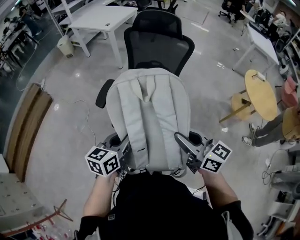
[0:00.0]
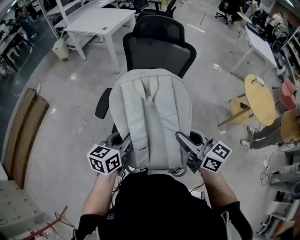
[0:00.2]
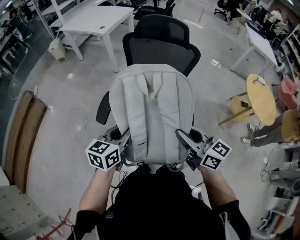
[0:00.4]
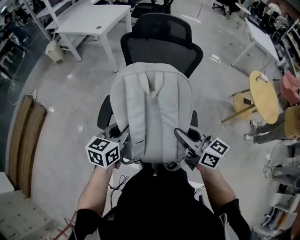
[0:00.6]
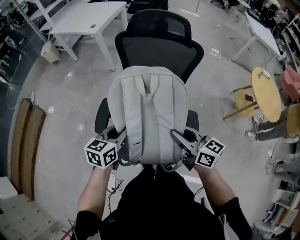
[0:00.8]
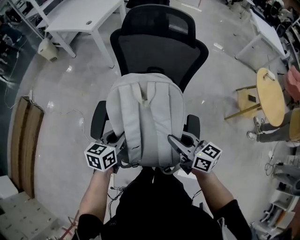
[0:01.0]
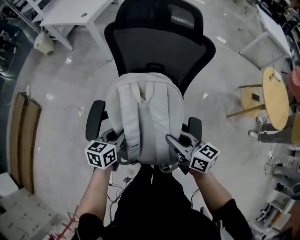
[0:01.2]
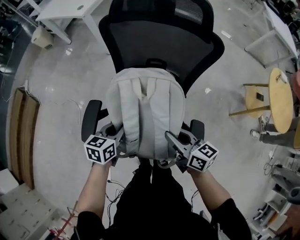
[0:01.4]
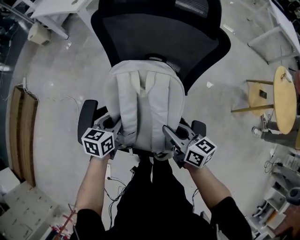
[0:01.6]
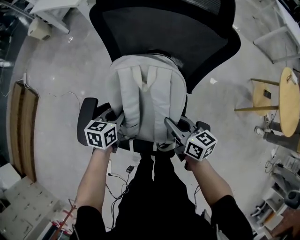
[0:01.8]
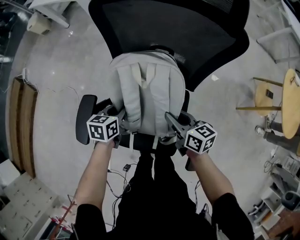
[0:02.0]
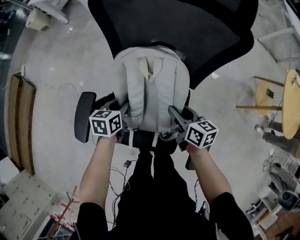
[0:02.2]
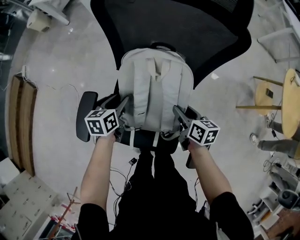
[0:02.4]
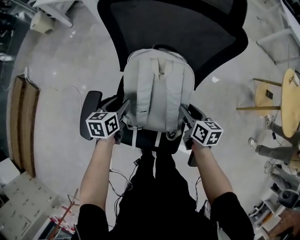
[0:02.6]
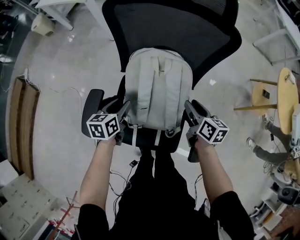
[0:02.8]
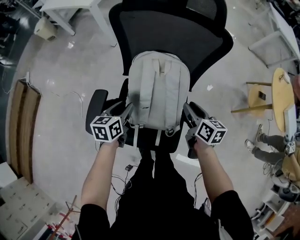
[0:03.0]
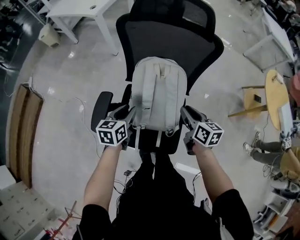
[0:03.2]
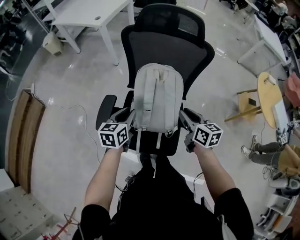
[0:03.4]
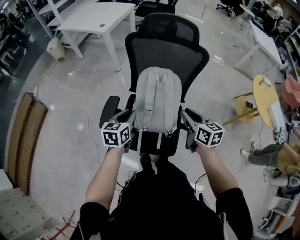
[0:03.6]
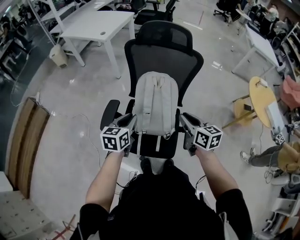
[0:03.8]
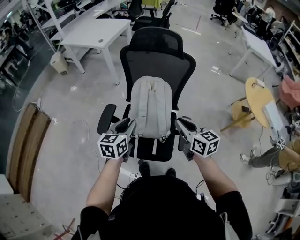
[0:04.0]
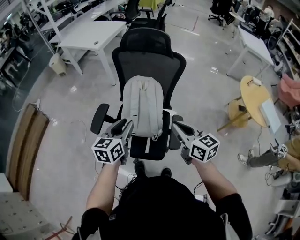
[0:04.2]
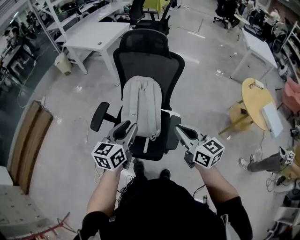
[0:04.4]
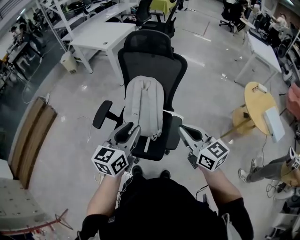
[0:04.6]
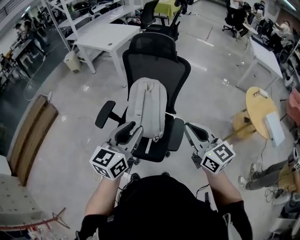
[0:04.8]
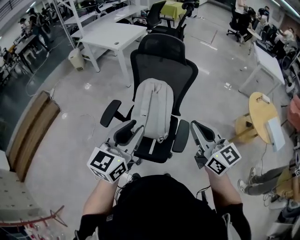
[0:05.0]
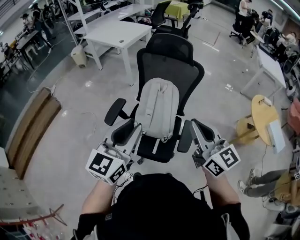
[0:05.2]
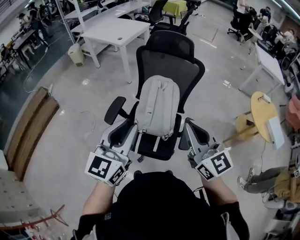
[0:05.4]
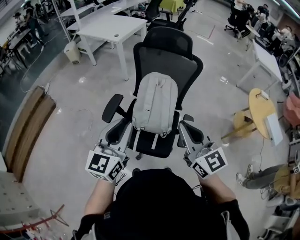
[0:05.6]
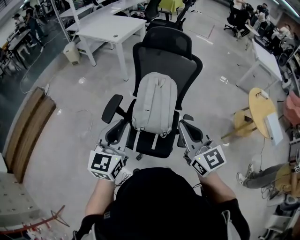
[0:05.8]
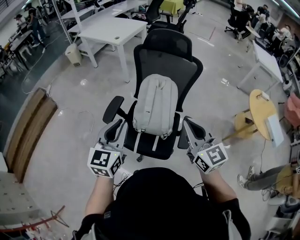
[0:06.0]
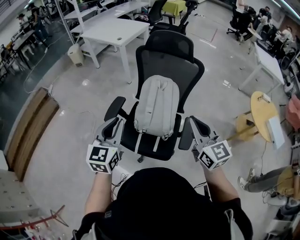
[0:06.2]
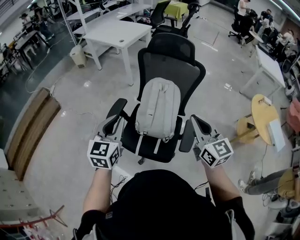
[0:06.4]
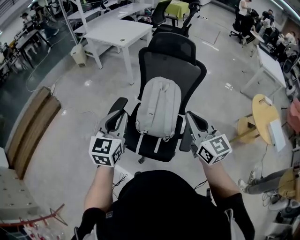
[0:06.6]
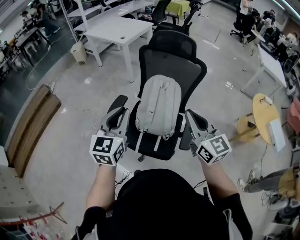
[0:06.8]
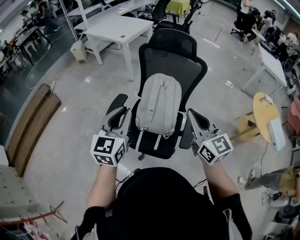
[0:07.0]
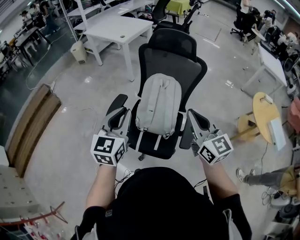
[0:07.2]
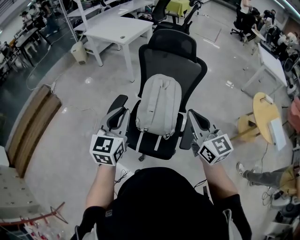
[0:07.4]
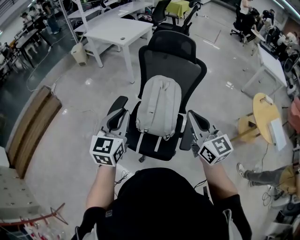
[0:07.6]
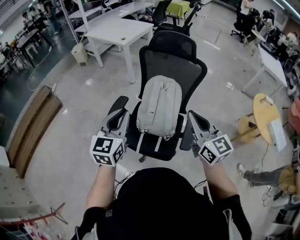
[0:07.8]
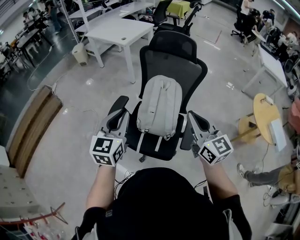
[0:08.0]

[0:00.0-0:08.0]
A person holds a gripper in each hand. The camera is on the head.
0:00.0 to 0:01.6: The two grippers go roughly 40 cm forward and downward. The right gripper turns by approximately 30 degrees; the left gripper swivels roughly 20 degrees.
0:01.6 to 0:03.2: The left gripper goes downward and returns, approximately 10 cm each way; the right gripper moves some 10 cm downward and comes back.
0:03.2 to 0:04.8: The left gripper shifts about 40 cm upward, backward and to the right, and swivels approximately 30 degrees, while the right gripper shifts approximately 35 cm upward and backward, turns by some 40 degrees, and closes.
0:04.8 to 0:06.4: The right gripper travels to the left by approximately 5 cm, while the left gripper travels to the left by some 15 cm, and rotates approximately 20 degrees.
0:06.4 to 0:08.0: The grippers make only small movements.

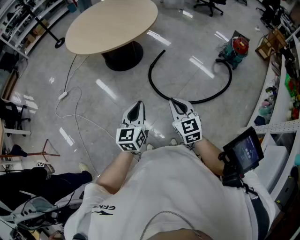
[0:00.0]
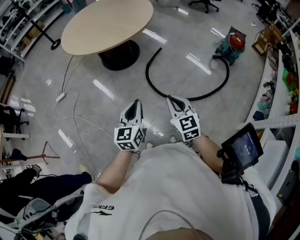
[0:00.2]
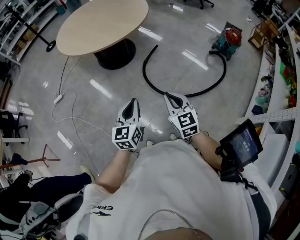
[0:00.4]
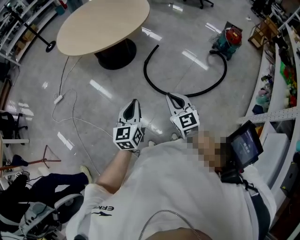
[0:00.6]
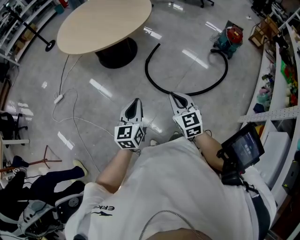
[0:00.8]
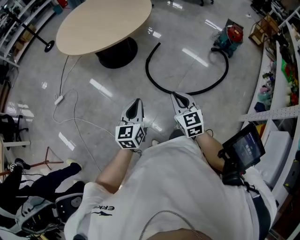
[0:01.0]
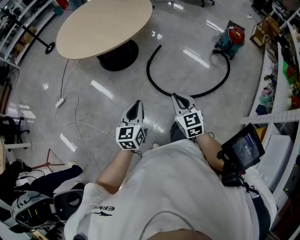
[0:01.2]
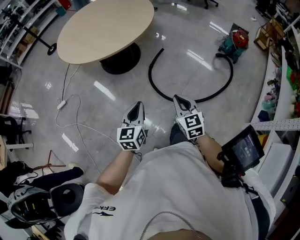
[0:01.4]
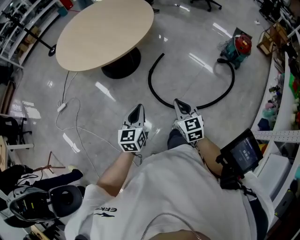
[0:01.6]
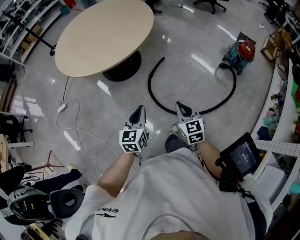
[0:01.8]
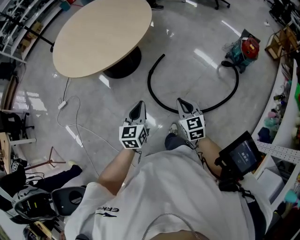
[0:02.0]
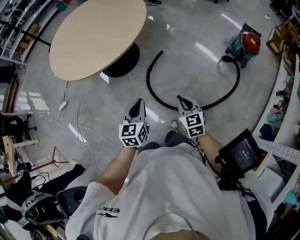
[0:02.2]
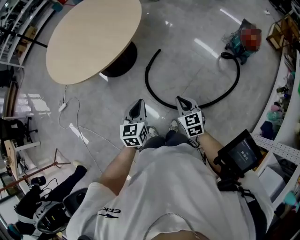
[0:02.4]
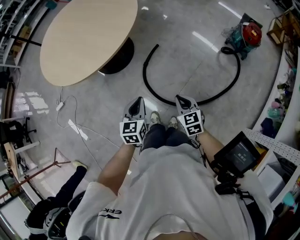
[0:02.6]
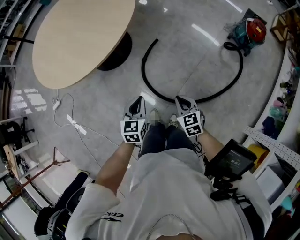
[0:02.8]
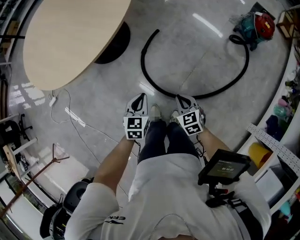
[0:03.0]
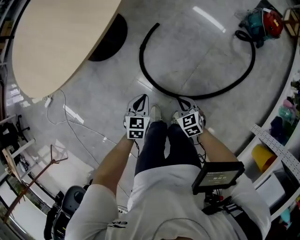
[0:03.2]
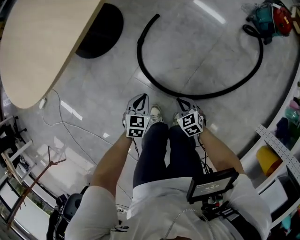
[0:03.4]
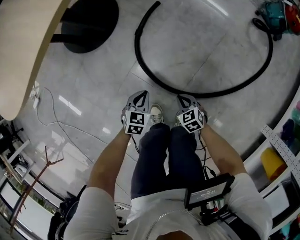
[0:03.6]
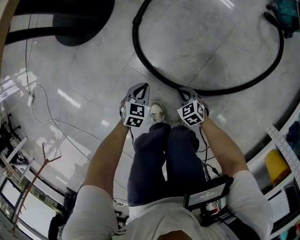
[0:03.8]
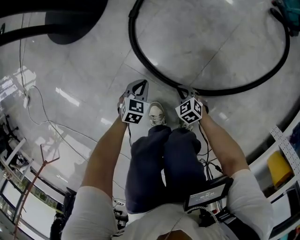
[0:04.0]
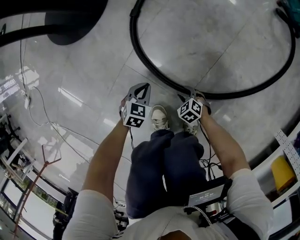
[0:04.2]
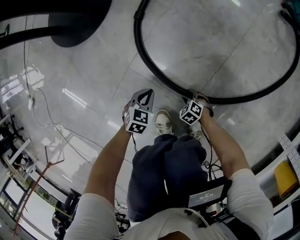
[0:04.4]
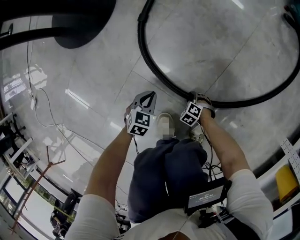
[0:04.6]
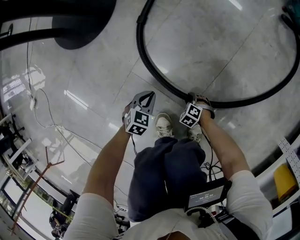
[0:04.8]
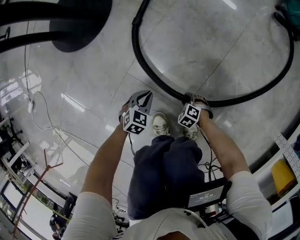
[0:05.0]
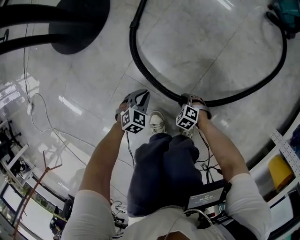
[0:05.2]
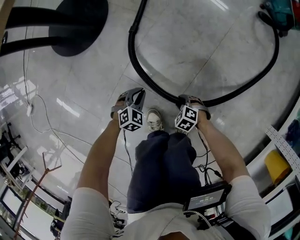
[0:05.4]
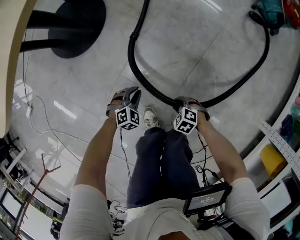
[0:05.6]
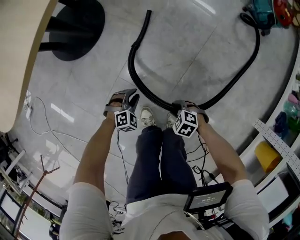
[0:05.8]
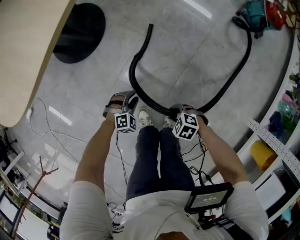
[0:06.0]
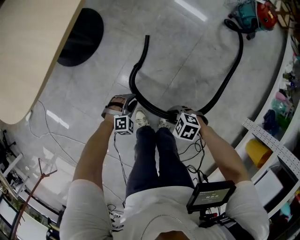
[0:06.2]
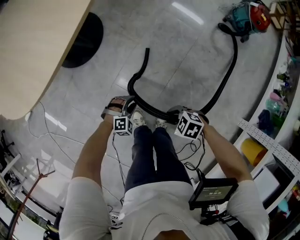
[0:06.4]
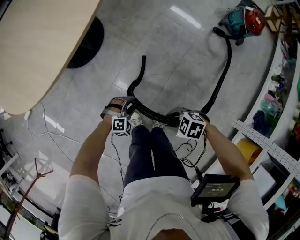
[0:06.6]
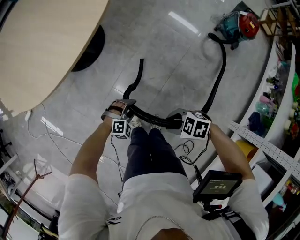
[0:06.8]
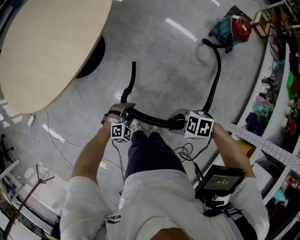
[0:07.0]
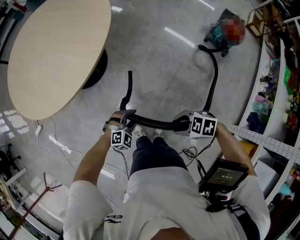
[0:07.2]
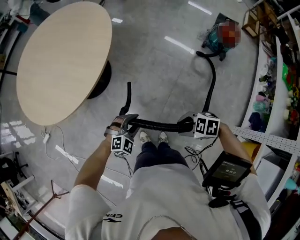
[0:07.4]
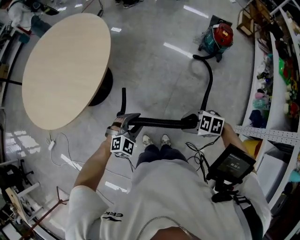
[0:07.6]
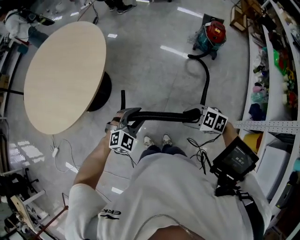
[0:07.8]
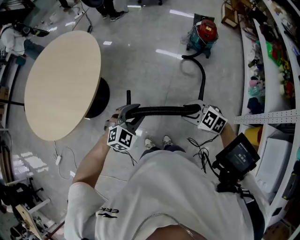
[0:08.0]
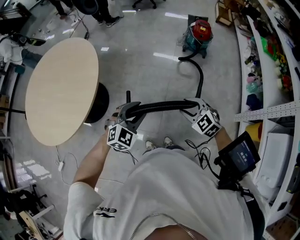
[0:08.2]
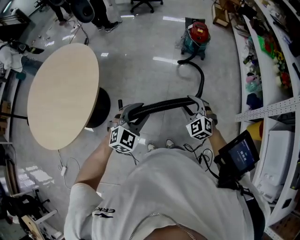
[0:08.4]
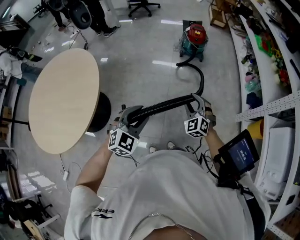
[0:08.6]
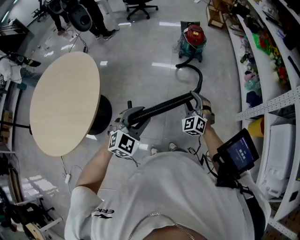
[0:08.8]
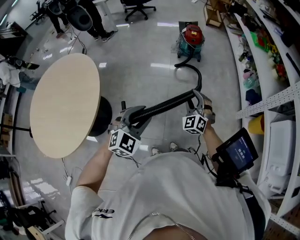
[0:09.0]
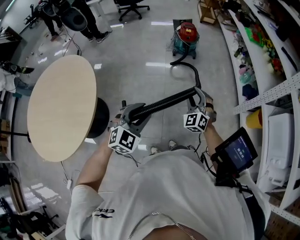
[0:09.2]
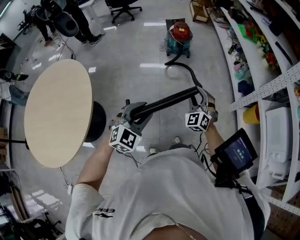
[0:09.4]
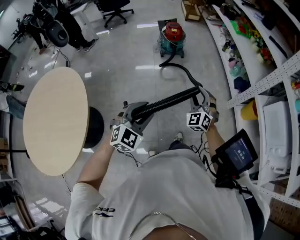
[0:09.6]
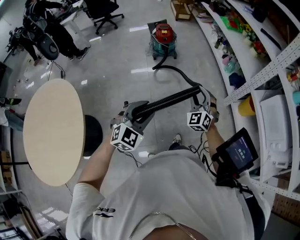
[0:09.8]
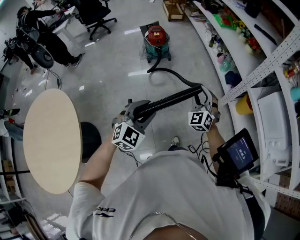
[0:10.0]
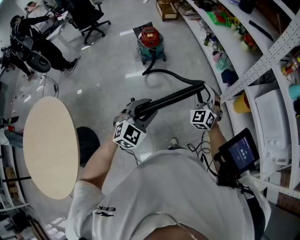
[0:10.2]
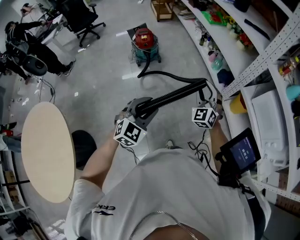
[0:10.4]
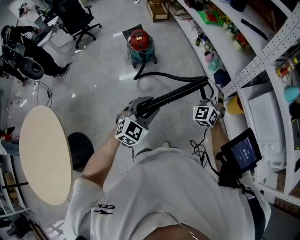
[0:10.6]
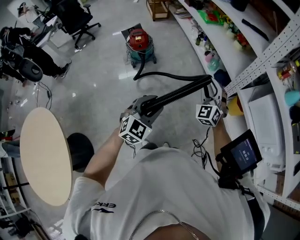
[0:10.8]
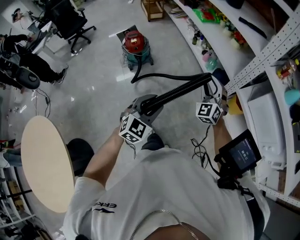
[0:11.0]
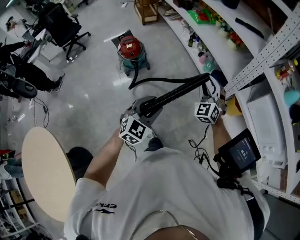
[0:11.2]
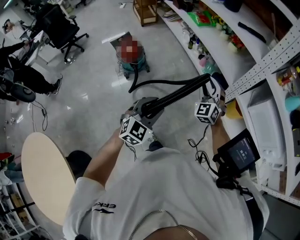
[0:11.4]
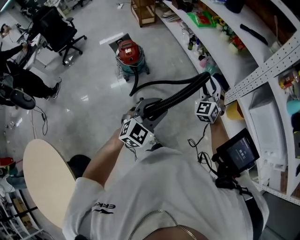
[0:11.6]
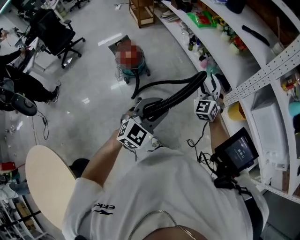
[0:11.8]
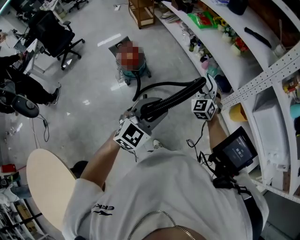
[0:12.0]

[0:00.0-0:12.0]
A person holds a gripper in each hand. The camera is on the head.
0:00.0 to 0:01.6: The left gripper travels forward by some 15 cm. Meanwhile the right gripper shifts approximately 15 cm forward and downward.
0:01.6 to 0:03.0: The right gripper goes about 35 cm downward, forward and to the right. Meanwhile the left gripper shifts about 35 cm forward, downward and to the right, and changes its angle by approximately 20 degrees.
0:03.0 to 0:04.4: The two grippers go some 60 cm downward. The right gripper angles its fingers downward, by about 30 degrees, and opens its fingers. Meanwhile the left gripper rotates about 30 degrees.
0:04.4 to 0:06.0: The right gripper moves upward, about 40 cm, while the left gripper is displaced upward by some 20 cm, rotates around the line of its fingers by approximately 50 degrees, clockwise from behind, and opens its fingers.
0:06.0 to 0:07.6: The grippers both shift upward by approximately 50 cm. The left gripper swivels roughly 20 degrees.
0:07.6 to 0:09.0: The left gripper is displaced upward by approximately 15 cm. The right gripper moves approximately 15 cm, and tips its fingers upward by roughly 40 degrees.
0:09.0 to 0:10.4: The right gripper ends up about 35 cm from where it was, and turns by some 30 degrees. The left gripper moves approximately 30 cm, and rotates about 20 degrees.
0:10.4 to 0:12.0: Both grippers travel together forward and to the left, some 25 cm.

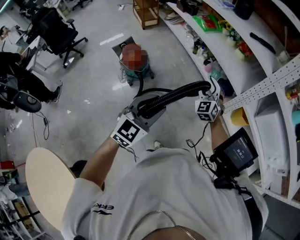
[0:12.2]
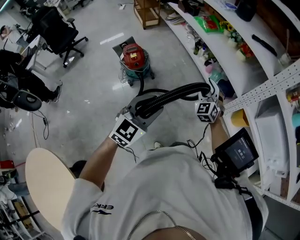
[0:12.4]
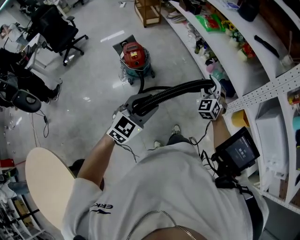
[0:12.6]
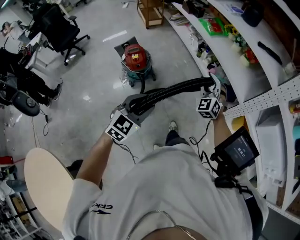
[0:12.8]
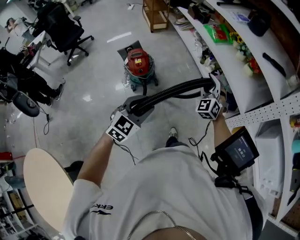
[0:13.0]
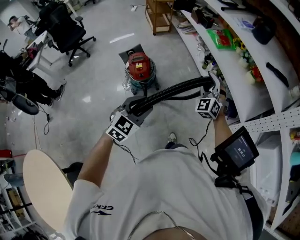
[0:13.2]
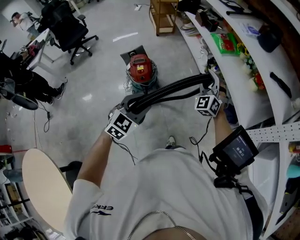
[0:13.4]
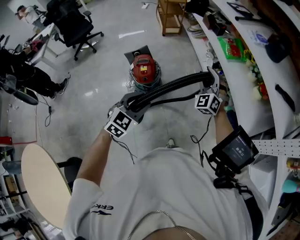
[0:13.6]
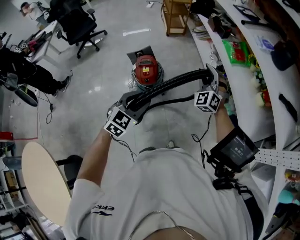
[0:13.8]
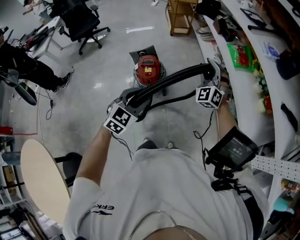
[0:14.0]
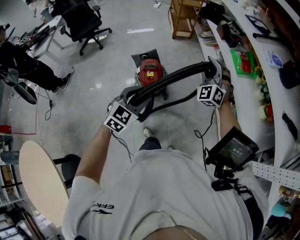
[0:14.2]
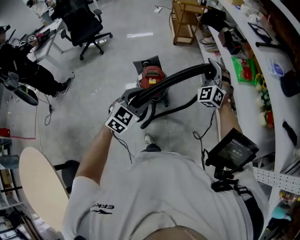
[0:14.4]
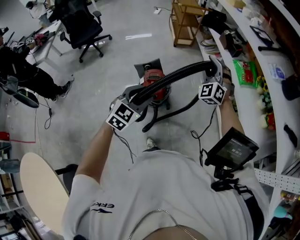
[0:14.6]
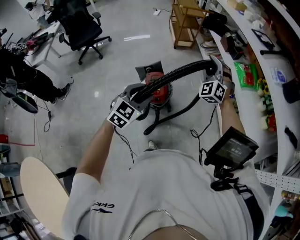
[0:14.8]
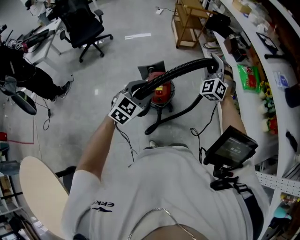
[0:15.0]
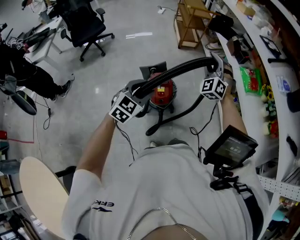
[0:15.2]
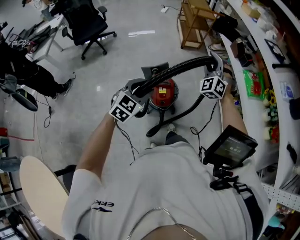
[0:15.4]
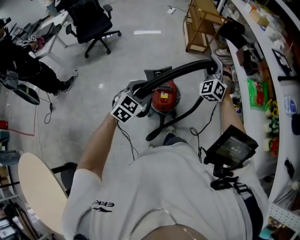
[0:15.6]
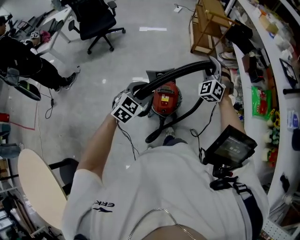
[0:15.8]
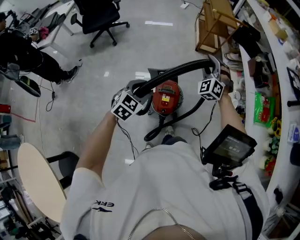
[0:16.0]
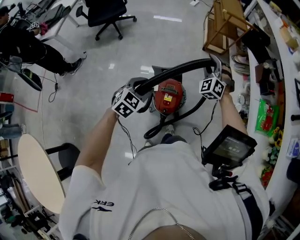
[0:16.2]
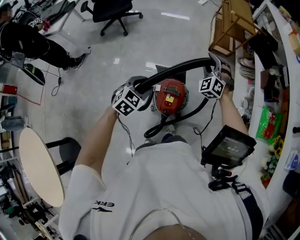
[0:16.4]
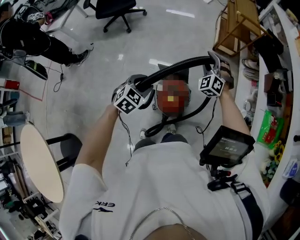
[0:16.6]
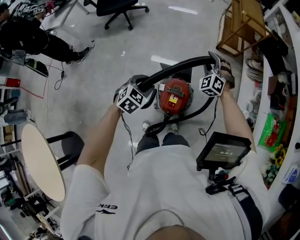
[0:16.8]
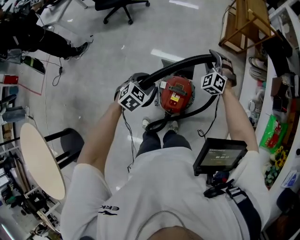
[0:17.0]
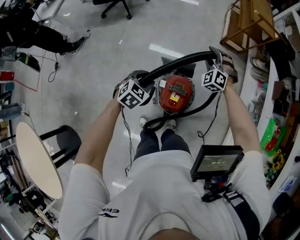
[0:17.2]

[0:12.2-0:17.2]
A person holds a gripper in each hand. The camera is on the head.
0:12.2 to 0:13.8: The grippers both shift forward and to the left by roughly 35 cm. The left gripper changes its angle by approximately 30 degrees. Meanwhile the right gripper changes its angle by about 30 degrees.
0:13.8 to 0:15.6: The grippers both shift to the left and forward by some 35 cm.
0:15.6 to 0:17.2: The right gripper shifts some 35 cm forward, downward and to the left, and rotates about 30 degrees, while the left gripper shifts about 30 cm downward, forward and to the left, and swivels some 30 degrees.
